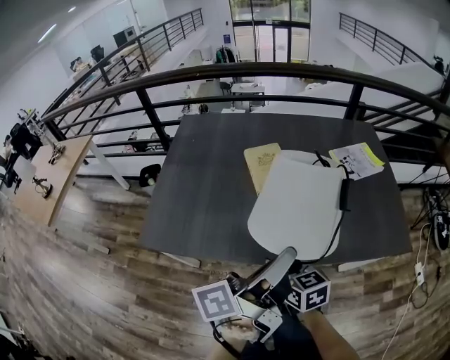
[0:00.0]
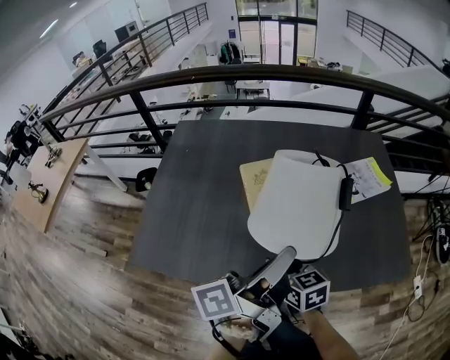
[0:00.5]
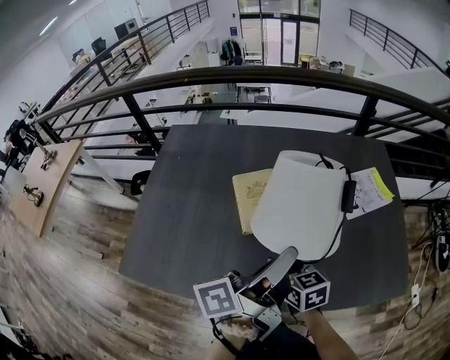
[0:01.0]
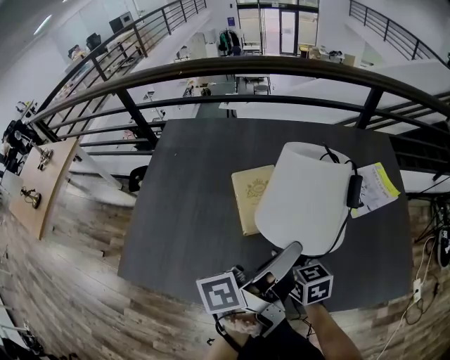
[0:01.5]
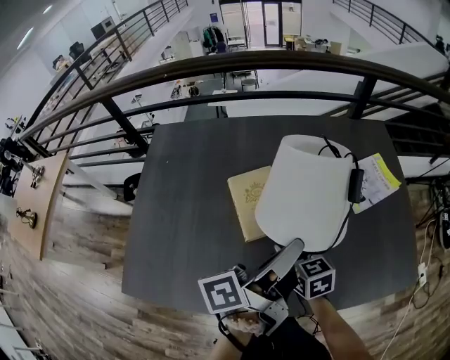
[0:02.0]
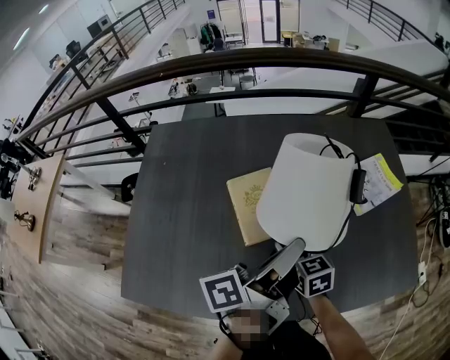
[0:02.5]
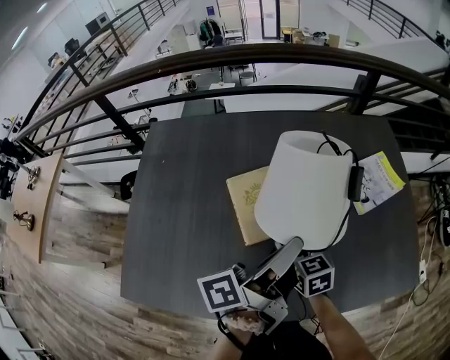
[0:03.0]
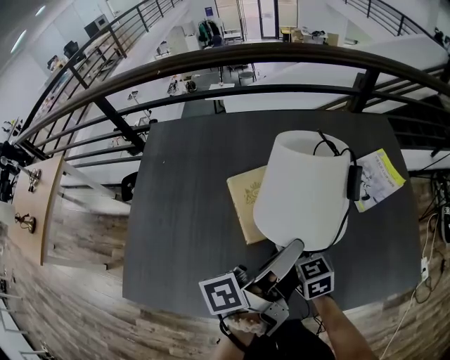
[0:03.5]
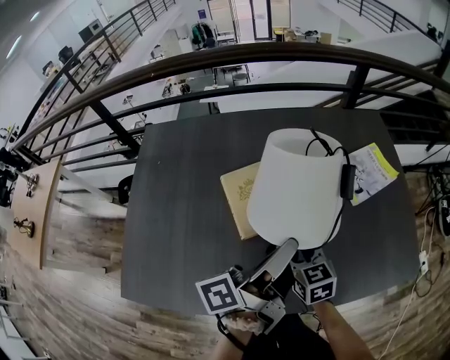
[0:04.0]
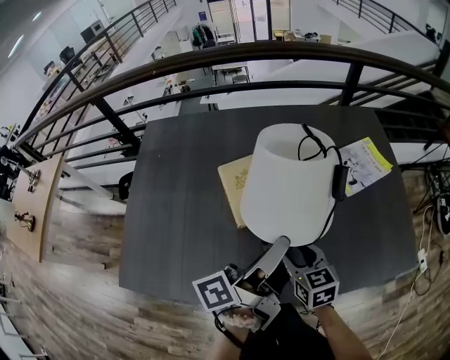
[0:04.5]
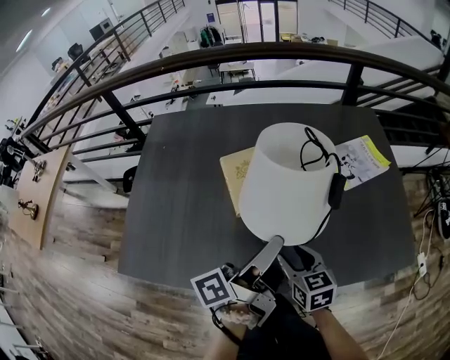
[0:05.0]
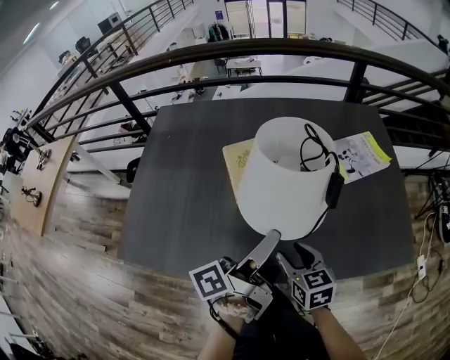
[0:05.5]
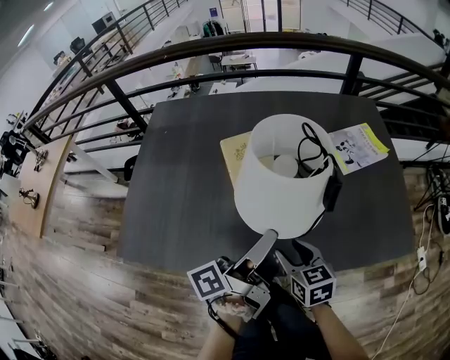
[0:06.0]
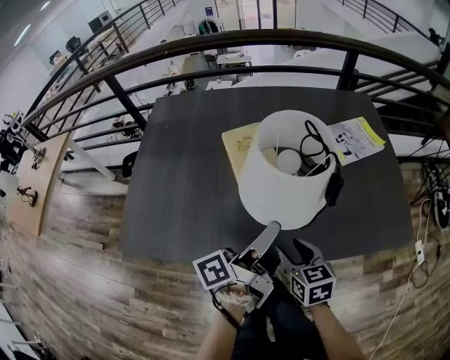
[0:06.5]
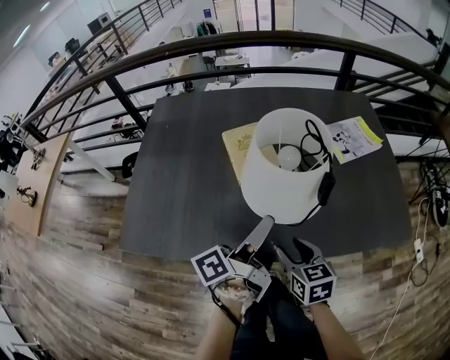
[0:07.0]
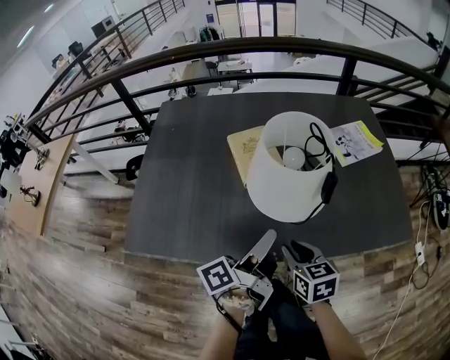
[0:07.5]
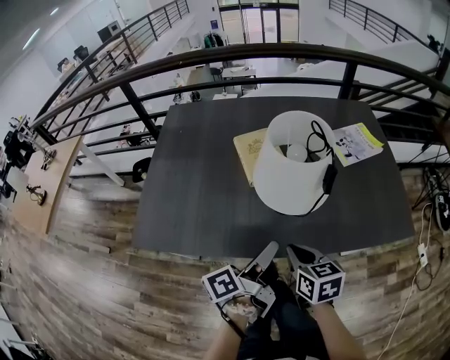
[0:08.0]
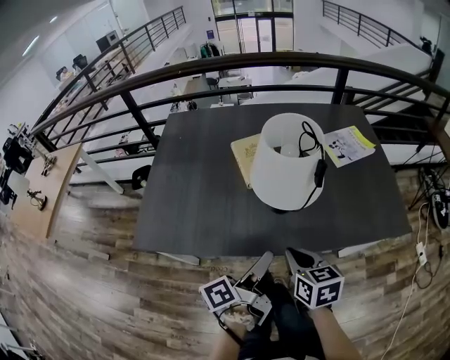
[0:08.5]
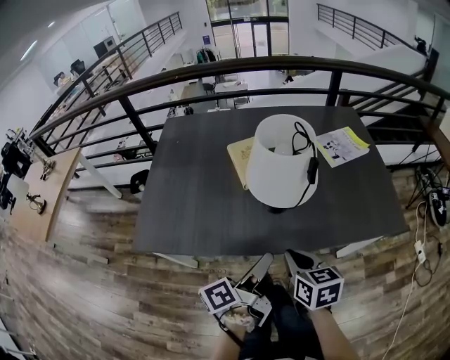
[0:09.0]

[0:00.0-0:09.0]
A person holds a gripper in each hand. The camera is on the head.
0:00.0 to 0:02.0: The right gripper shifts by about 25 cm.
0:02.0 to 0:04.5: The right gripper shifts by about 10 cm.
0:04.5 to 0:07.0: The right gripper moves some 15 cm.
0:07.0 to 0:09.0: The right gripper ends up roughly 10 cm from where it was, and closes up.

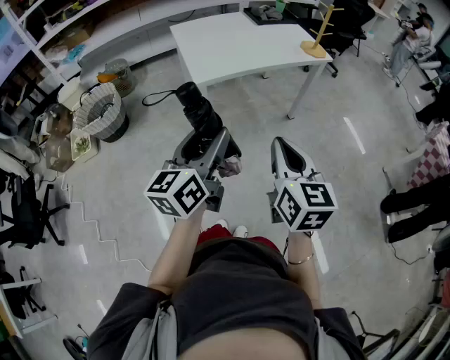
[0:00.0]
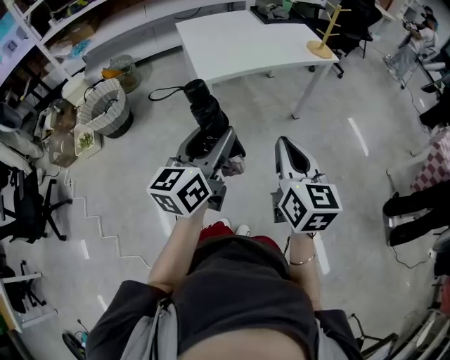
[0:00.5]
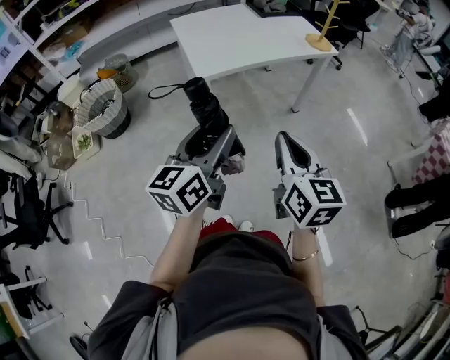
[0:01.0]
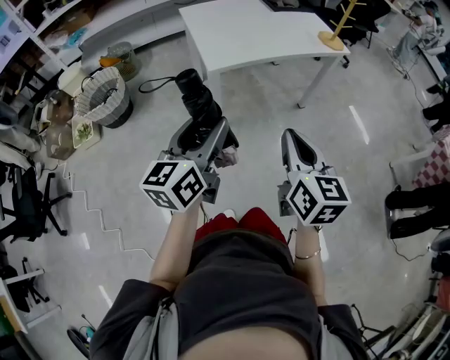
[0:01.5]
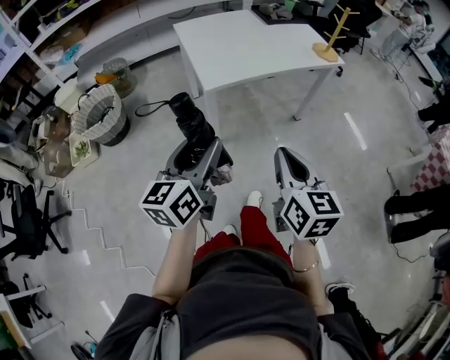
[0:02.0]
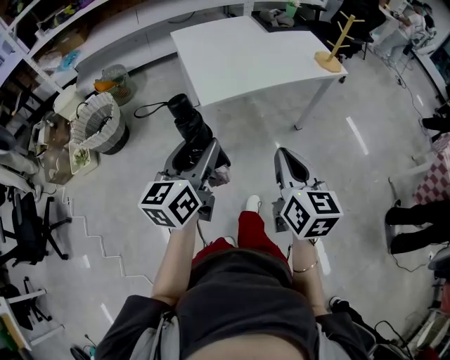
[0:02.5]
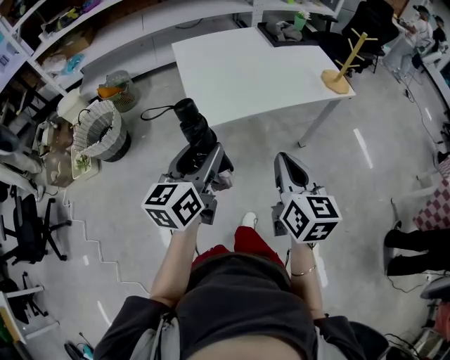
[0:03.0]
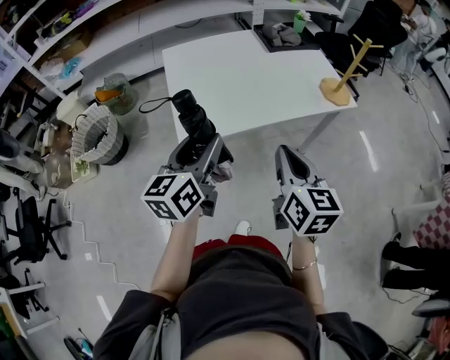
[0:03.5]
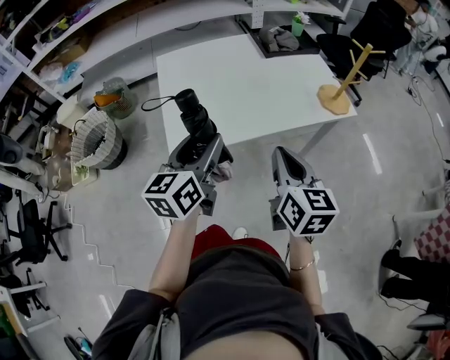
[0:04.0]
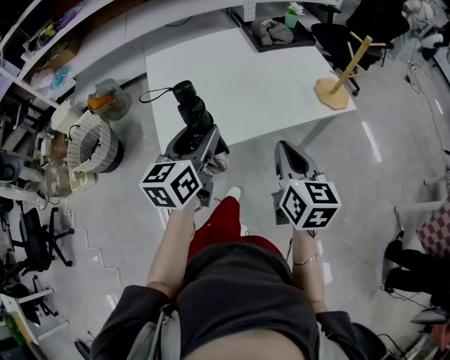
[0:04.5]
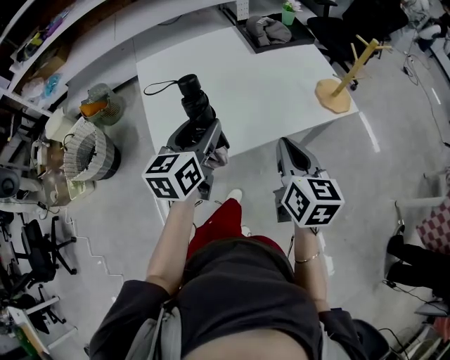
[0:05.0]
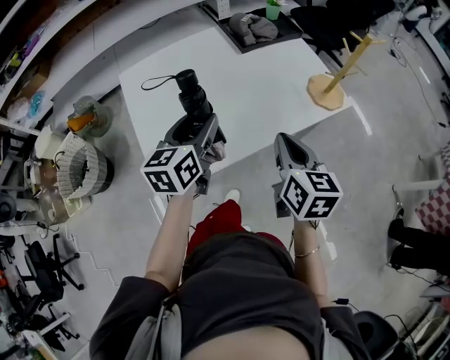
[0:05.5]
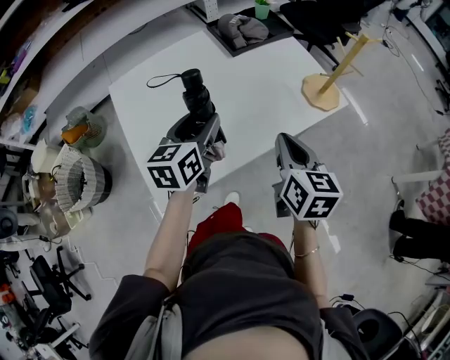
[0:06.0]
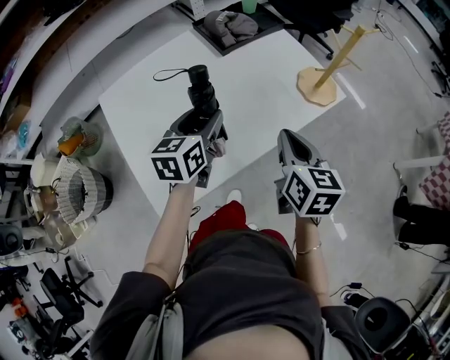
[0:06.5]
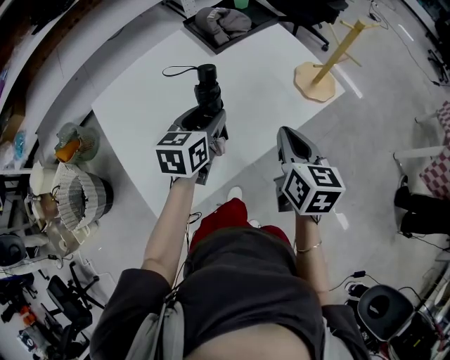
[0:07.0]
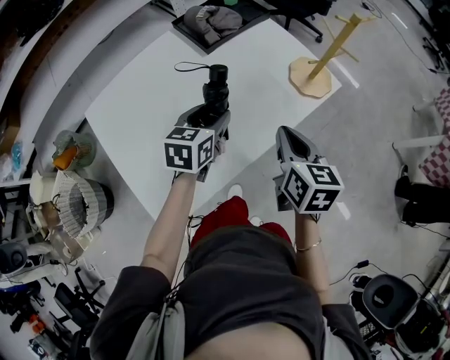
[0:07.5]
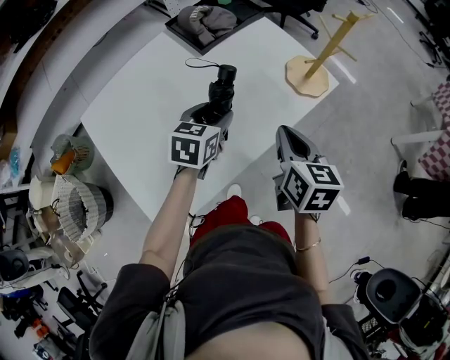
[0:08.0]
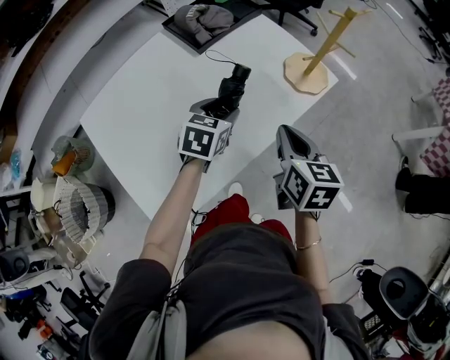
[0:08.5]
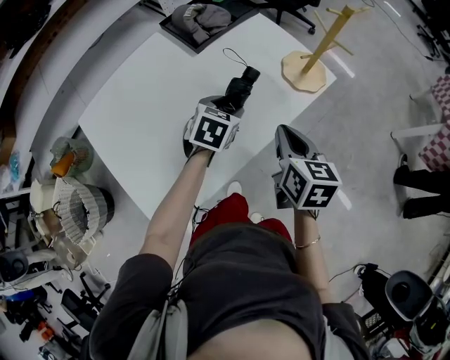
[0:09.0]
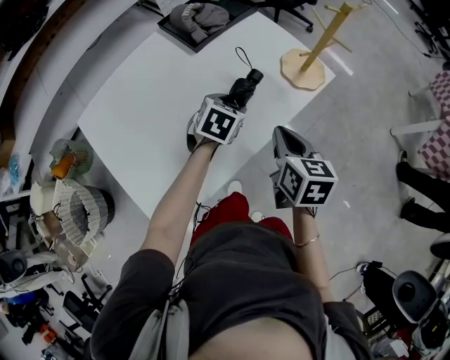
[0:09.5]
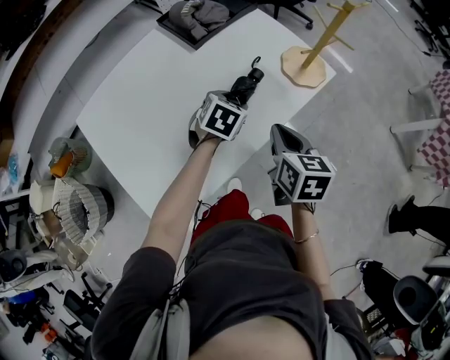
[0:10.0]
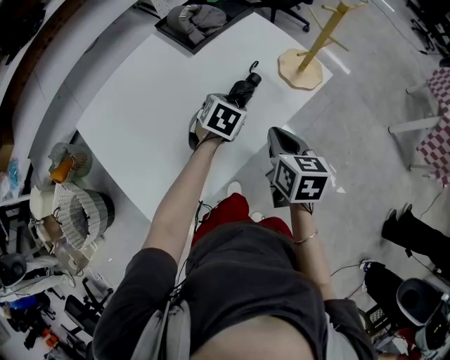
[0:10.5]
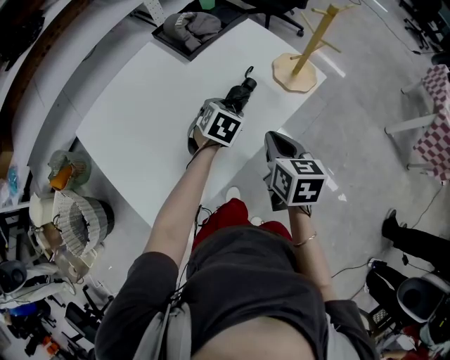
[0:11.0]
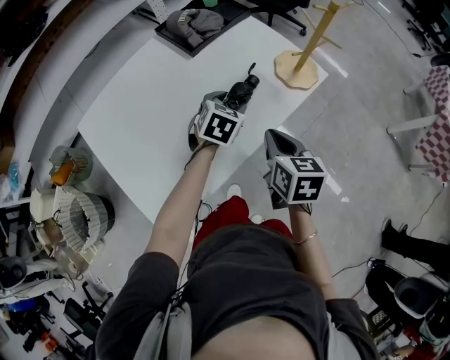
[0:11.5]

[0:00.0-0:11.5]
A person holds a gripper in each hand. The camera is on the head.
0:00.0 to 0:02.0: Both grippers move to the left and forward, some 10 cm.
0:02.0 to 0:04.0: Both grippers move forward and to the right, about 35 cm.
0:04.0 to 0:06.0: The two grippers go approximately 20 cm forward.
0:06.0 to 0:07.5: The right gripper moves forward, approximately 5 cm. Meanwhile the left gripper shifts roughly 15 cm forward, downward and to the right, and turns by approximately 20 degrees.
0:07.5 to 0:09.5: The left gripper is displaced downward and to the right by roughly 10 cm, and swivels approximately 30 degrees.
0:09.5 to 0:11.5: The grippers stay close to where they were, moving slightly.

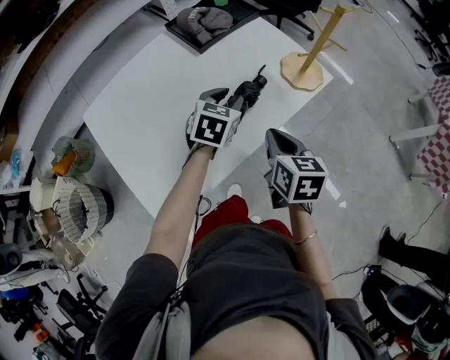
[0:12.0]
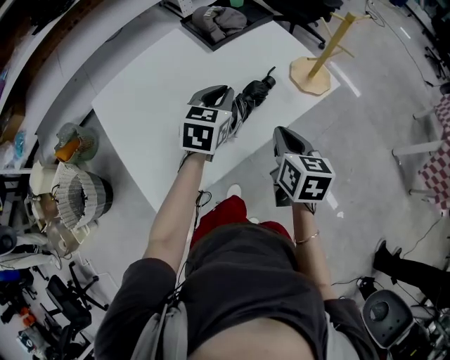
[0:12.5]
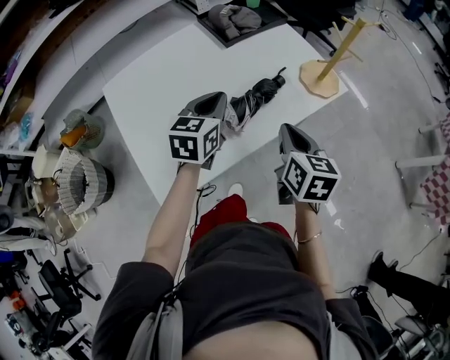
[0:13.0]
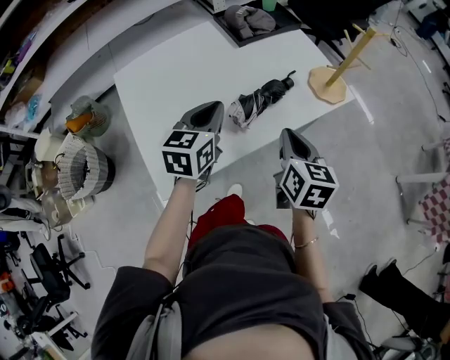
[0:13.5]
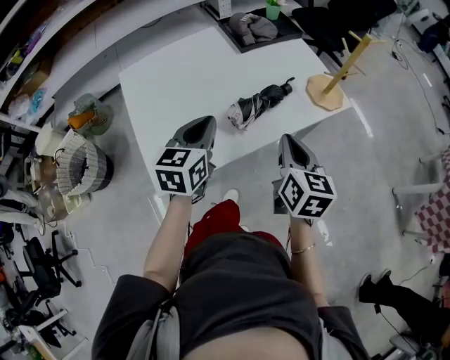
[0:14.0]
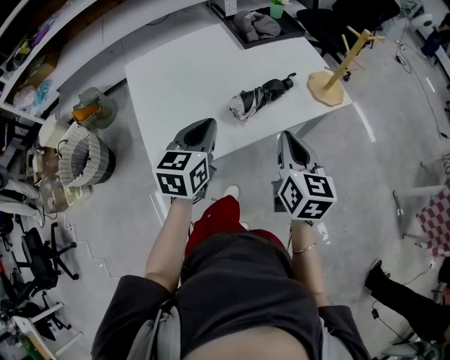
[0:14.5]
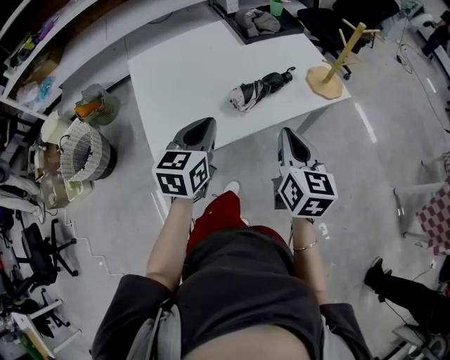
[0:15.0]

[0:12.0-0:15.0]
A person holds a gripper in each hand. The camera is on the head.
0:12.0 to 0:13.5: The left gripper moves backward, to the left and upward, some 15 cm, turns by about 30 degrees, and closes up.
0:13.5 to 0:15.0: The right gripper travels backward by some 10 cm. The left gripper is displaced backward by some 10 cm.

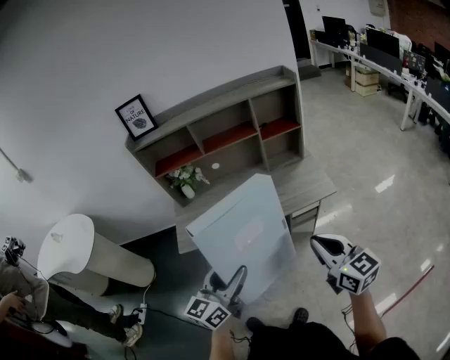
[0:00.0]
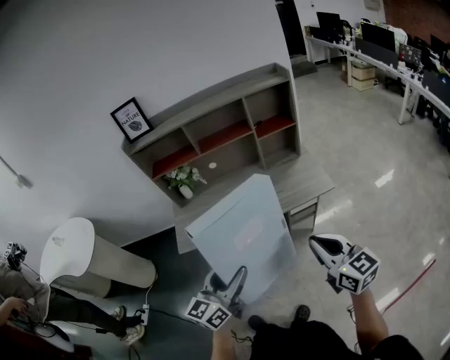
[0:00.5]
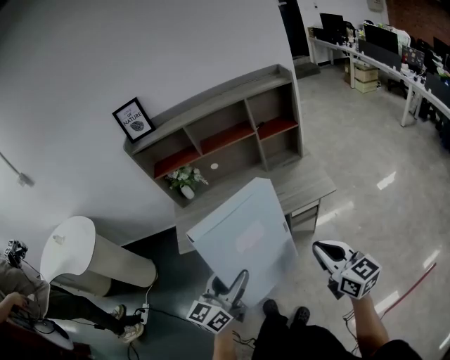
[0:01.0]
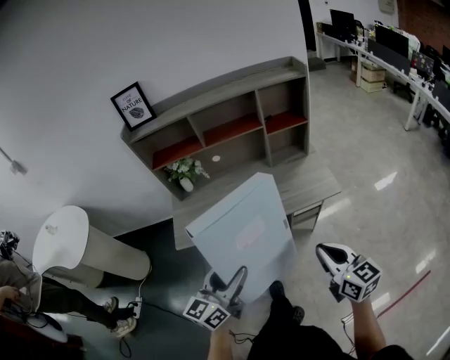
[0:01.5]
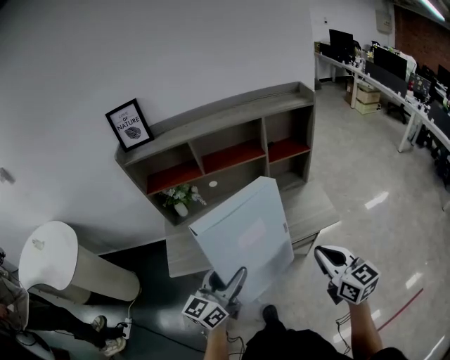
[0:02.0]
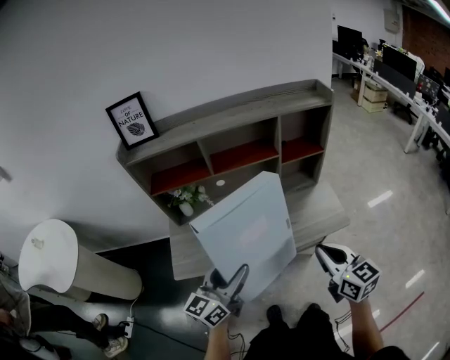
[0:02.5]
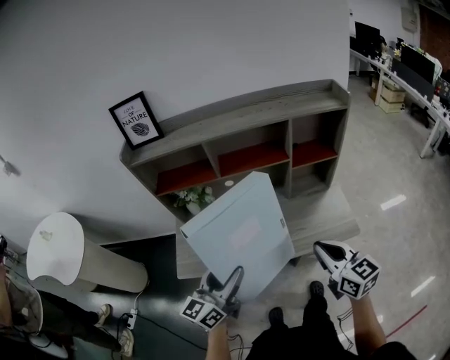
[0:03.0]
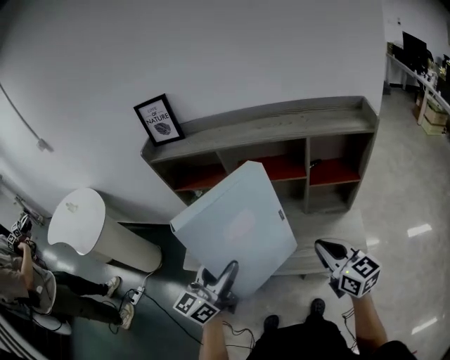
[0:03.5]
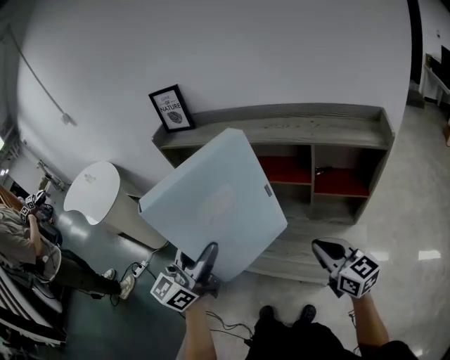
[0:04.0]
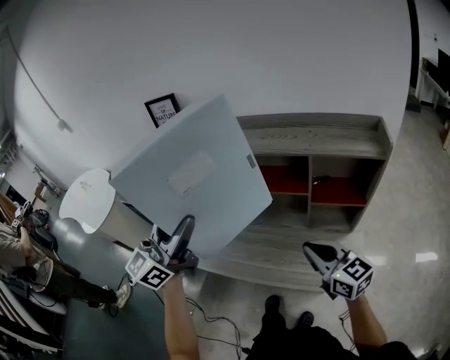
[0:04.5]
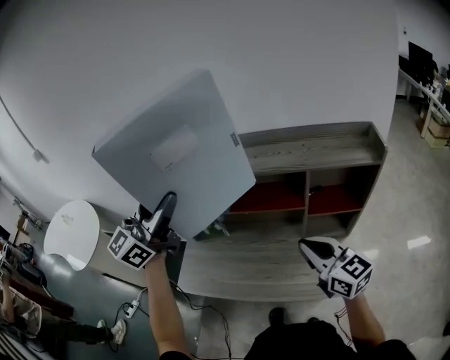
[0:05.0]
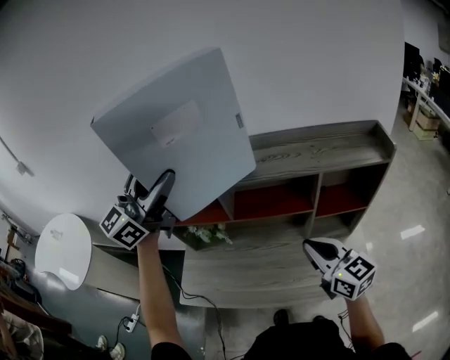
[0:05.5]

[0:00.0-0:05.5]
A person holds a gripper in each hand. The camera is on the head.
0:00.0 to 0:02.0: The two grippers go some 15 cm forward.
0:02.0 to 0:03.5: The right gripper is displaced forward by about 20 cm, and turns by some 20 degrees, while the left gripper heads forward and upward, covering approximately 15 cm, and changes its angle by about 20 degrees.
0:03.5 to 0:05.5: The left gripper moves forward and upward, some 40 cm, and swivels some 30 degrees. The right gripper shifts approximately 15 cm forward.
